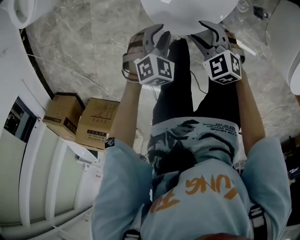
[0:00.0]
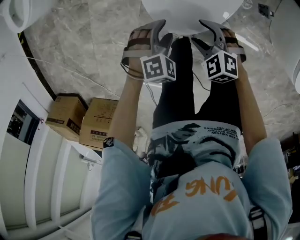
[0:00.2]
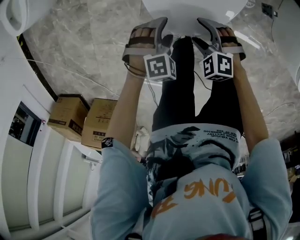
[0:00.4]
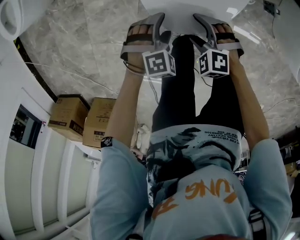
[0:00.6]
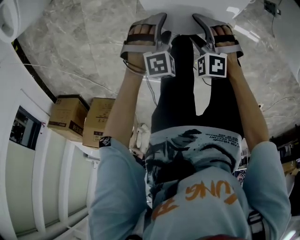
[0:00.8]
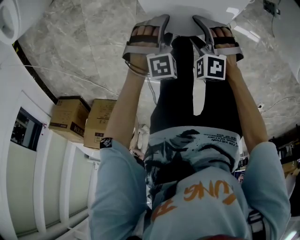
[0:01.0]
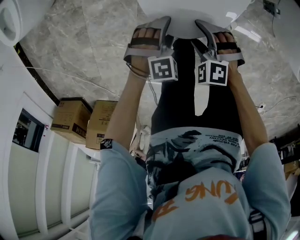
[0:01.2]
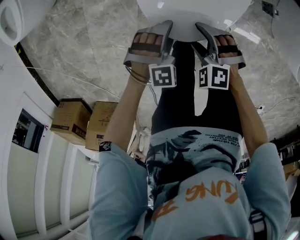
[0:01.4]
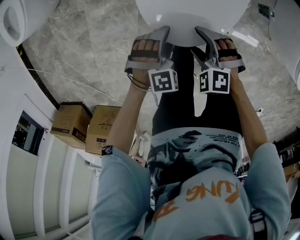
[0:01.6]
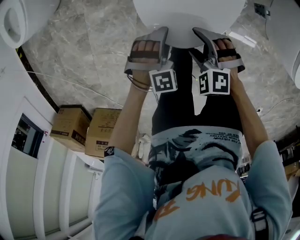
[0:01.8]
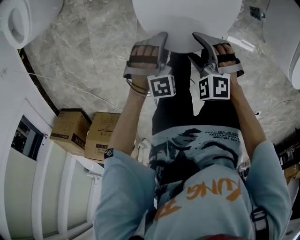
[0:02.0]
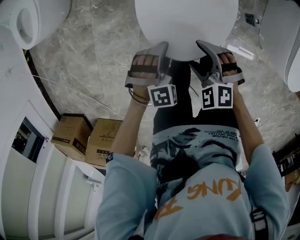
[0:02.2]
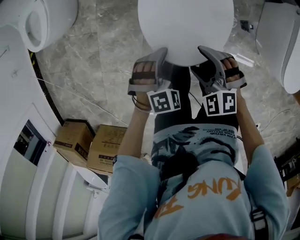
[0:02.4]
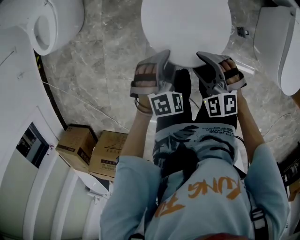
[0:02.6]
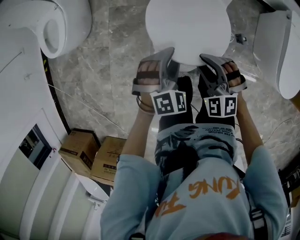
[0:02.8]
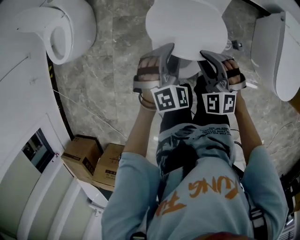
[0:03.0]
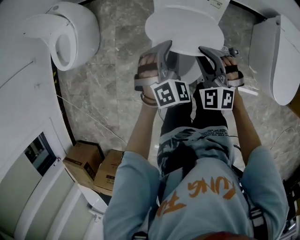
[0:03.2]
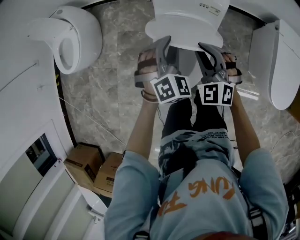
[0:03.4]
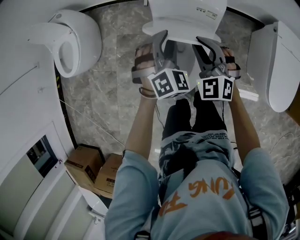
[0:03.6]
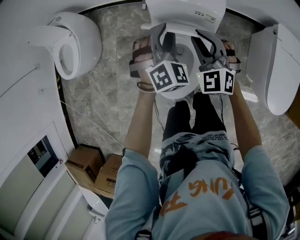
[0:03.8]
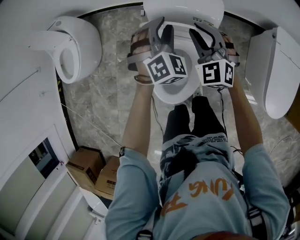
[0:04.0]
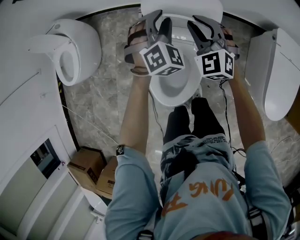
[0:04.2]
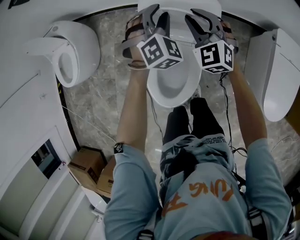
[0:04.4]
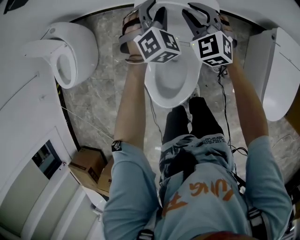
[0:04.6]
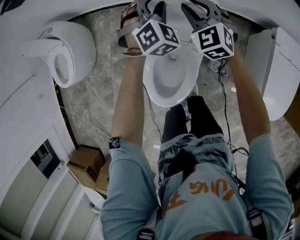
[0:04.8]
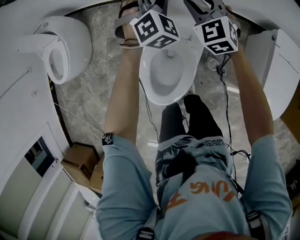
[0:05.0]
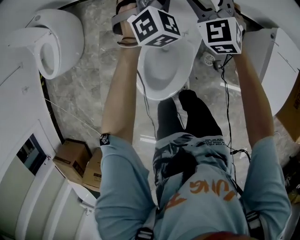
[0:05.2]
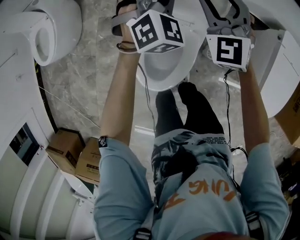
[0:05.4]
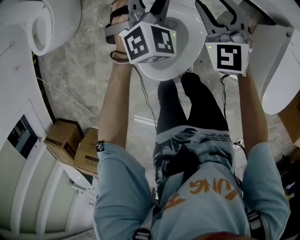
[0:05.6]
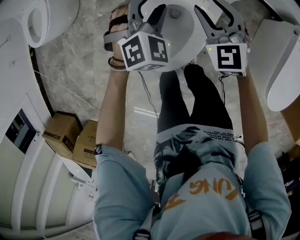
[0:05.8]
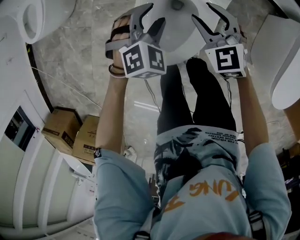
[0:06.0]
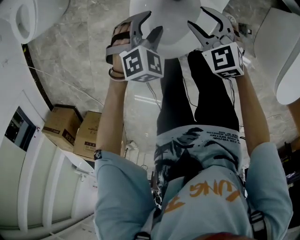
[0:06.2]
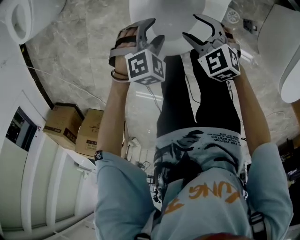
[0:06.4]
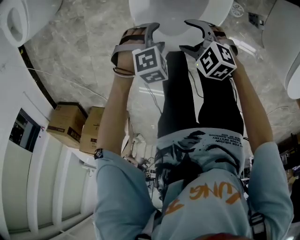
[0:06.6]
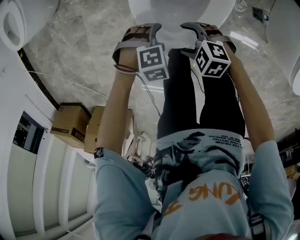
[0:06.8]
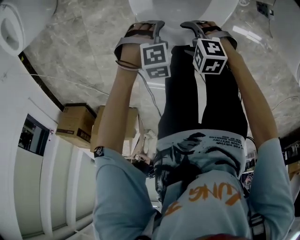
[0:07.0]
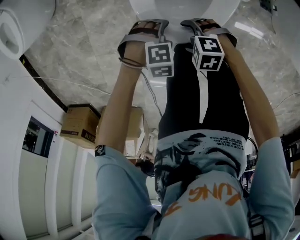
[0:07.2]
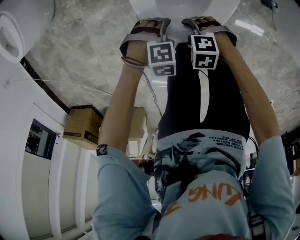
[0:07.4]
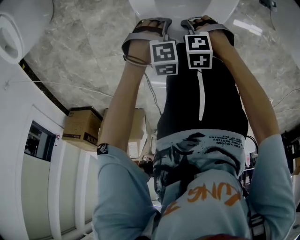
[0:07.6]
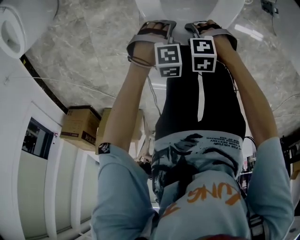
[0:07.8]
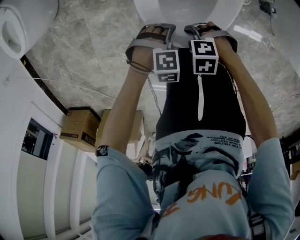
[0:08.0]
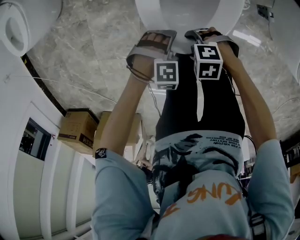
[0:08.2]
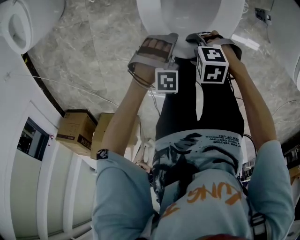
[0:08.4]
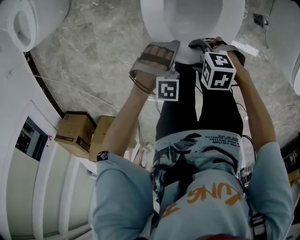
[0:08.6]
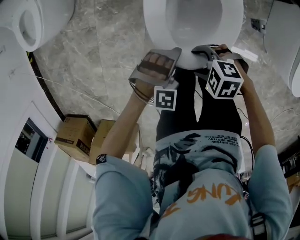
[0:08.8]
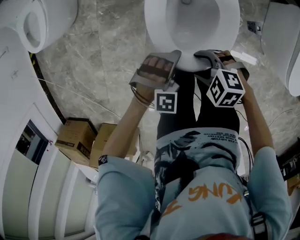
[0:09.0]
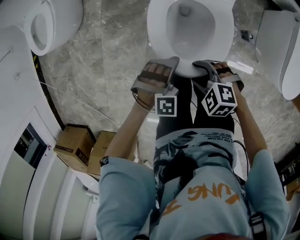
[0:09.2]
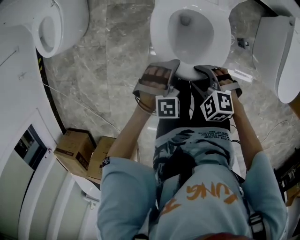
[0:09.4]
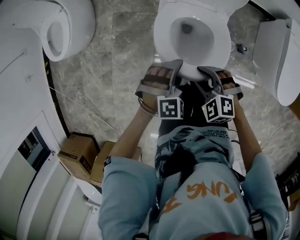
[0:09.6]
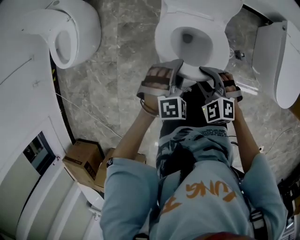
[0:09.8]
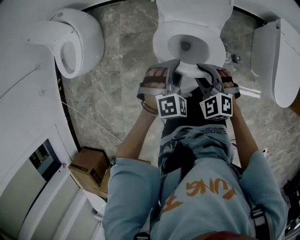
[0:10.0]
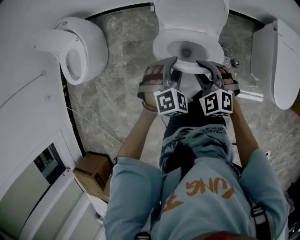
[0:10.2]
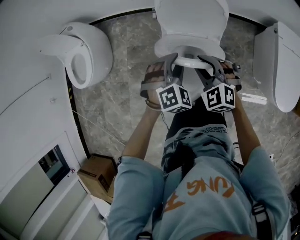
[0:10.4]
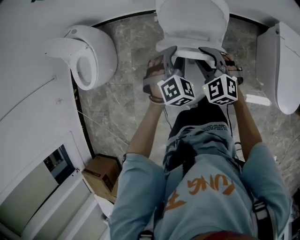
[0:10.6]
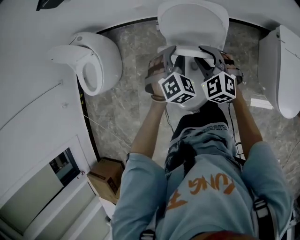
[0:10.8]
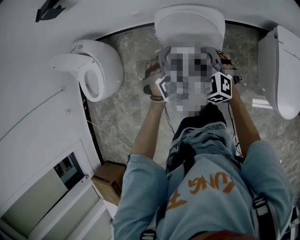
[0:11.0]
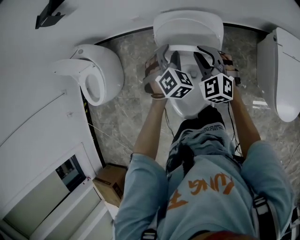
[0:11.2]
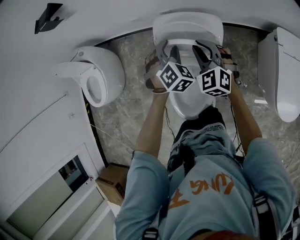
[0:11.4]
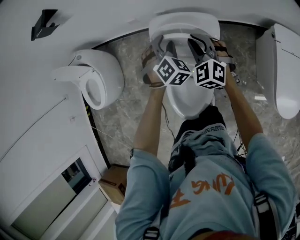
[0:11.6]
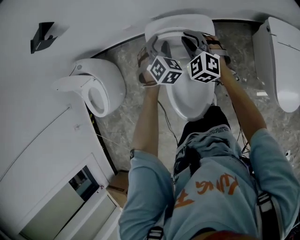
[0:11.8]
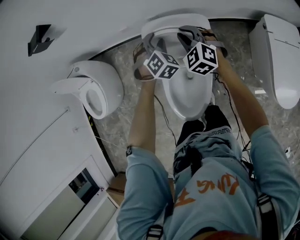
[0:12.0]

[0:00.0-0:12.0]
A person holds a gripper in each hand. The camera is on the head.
0:00.0 to 0:01.6: The grippers both shift downward by approximately 5 cm. The left gripper changes its angle by roughly 30 degrees, and opens its fingers; the right gripper rotates approximately 20 degrees, and opens its fingers.
0:01.6 to 0:03.0: The grippers both shift upward and forward by about 30 cm. The left gripper turns by some 30 degrees, and closes up; the right gripper changes its angle by roughly 30 degrees, and closes its fingers.
0:03.0 to 0:04.4: The grippers both shift forward and to the right by about 35 cm.
0:04.4 to 0:06.0: The right gripper is displaced downward, backward and to the left by approximately 30 cm, and turns by roughly 20 degrees. The left gripper is displaced backward, downward and to the left by approximately 35 cm.
0:06.0 to 0:07.6: The right gripper shifts by roughly 40 cm, and tilts its fingers some 30 degrees downward, while the left gripper moves roughly 35 cm, and rotates roughly 50 degrees.
0:07.6 to 0:09.0: Both grippers move upward, about 20 cm. The left gripper swivels about 30 degrees.
0:09.0 to 0:10.4: Both grippers move upward, roughly 25 cm. The left gripper rotates approximately 30 degrees. Meanwhile the right gripper turns by about 50 degrees, and closes up.
0:10.4 to 0:12.0: Both grippers move forward and to the right, approximately 25 cm.

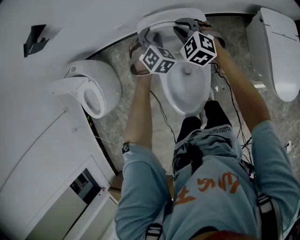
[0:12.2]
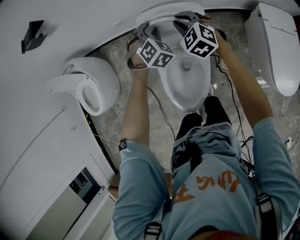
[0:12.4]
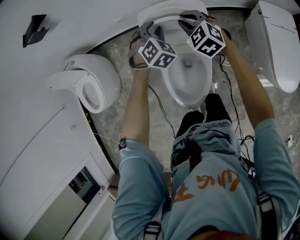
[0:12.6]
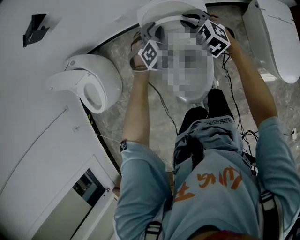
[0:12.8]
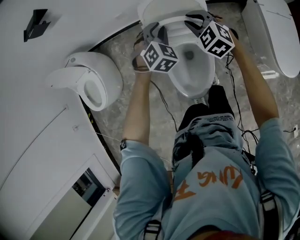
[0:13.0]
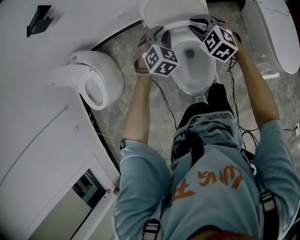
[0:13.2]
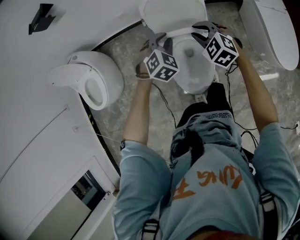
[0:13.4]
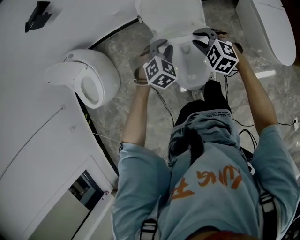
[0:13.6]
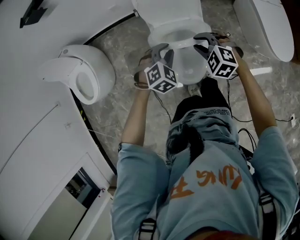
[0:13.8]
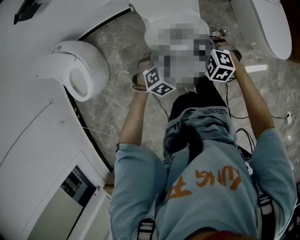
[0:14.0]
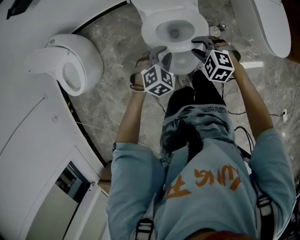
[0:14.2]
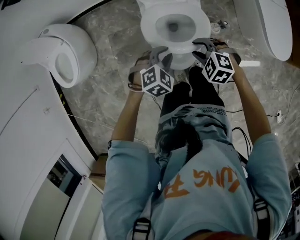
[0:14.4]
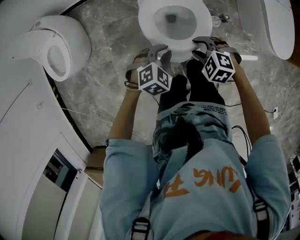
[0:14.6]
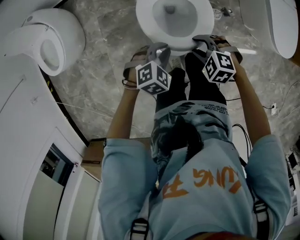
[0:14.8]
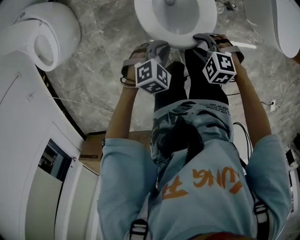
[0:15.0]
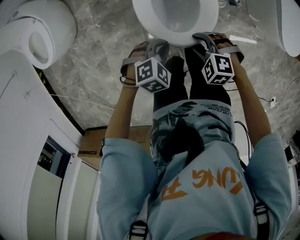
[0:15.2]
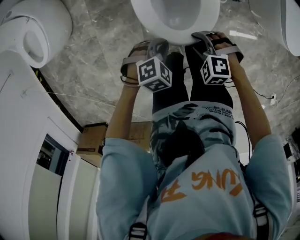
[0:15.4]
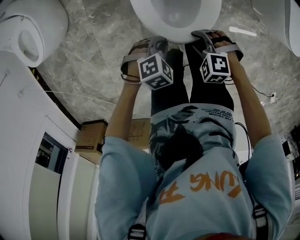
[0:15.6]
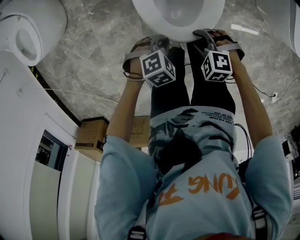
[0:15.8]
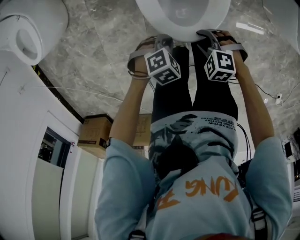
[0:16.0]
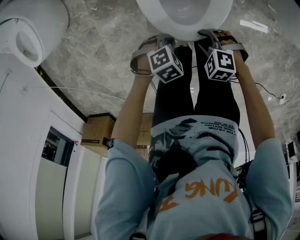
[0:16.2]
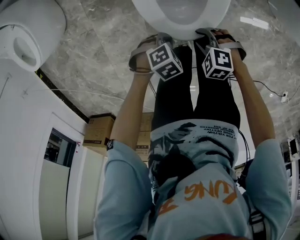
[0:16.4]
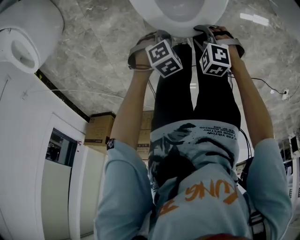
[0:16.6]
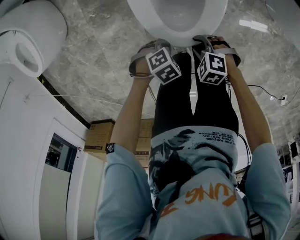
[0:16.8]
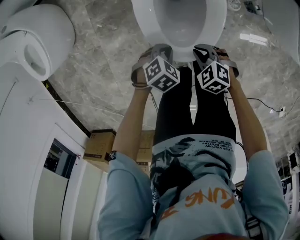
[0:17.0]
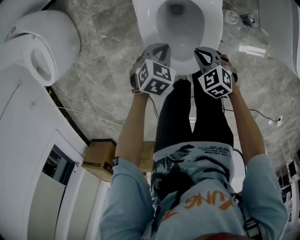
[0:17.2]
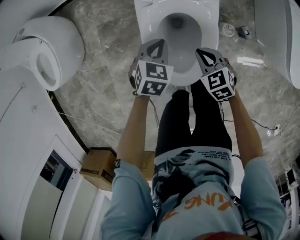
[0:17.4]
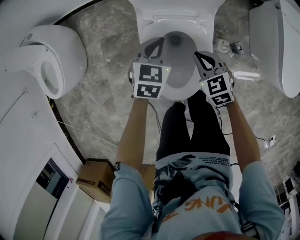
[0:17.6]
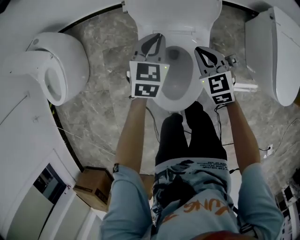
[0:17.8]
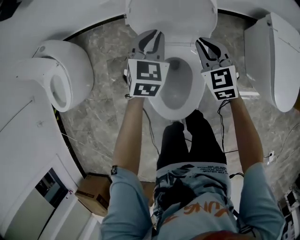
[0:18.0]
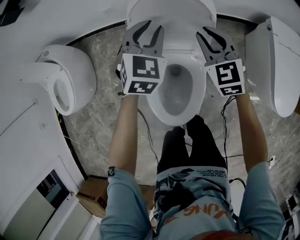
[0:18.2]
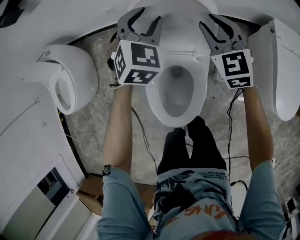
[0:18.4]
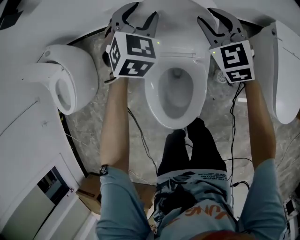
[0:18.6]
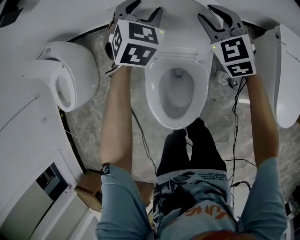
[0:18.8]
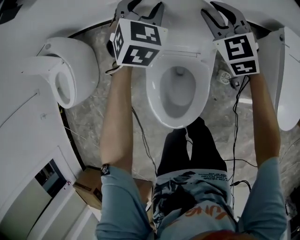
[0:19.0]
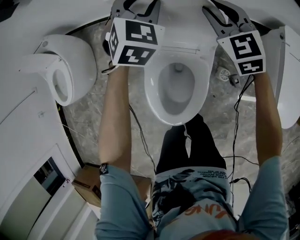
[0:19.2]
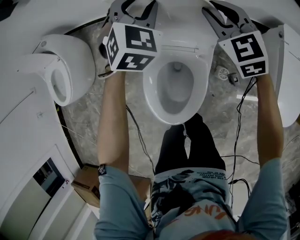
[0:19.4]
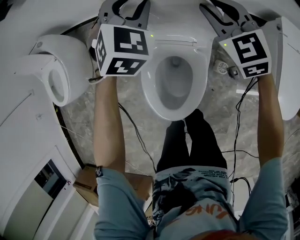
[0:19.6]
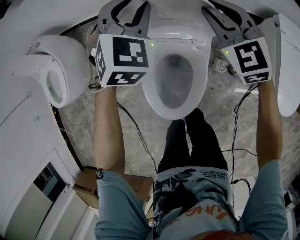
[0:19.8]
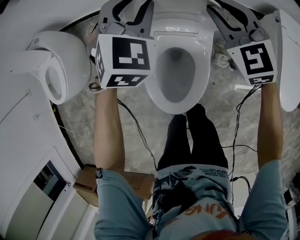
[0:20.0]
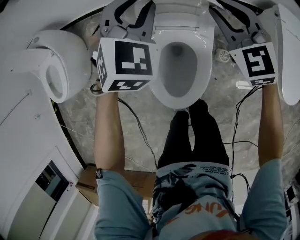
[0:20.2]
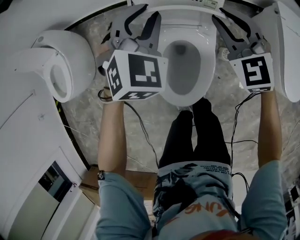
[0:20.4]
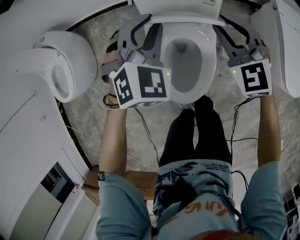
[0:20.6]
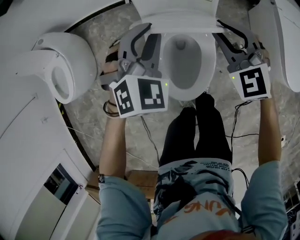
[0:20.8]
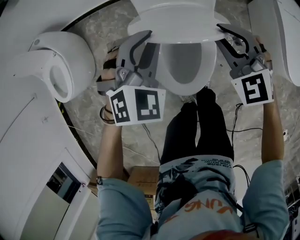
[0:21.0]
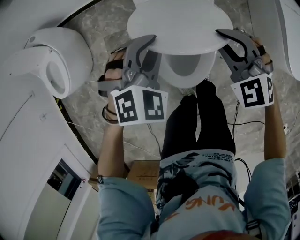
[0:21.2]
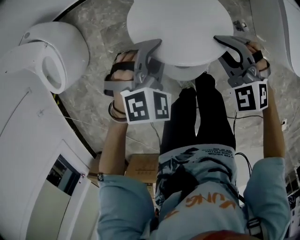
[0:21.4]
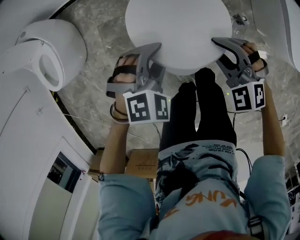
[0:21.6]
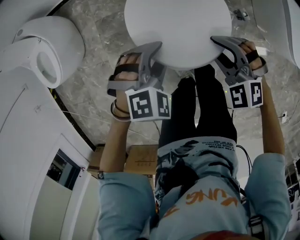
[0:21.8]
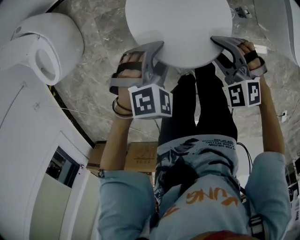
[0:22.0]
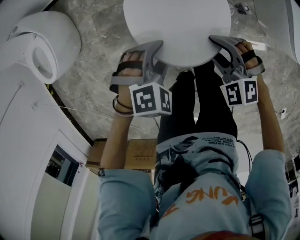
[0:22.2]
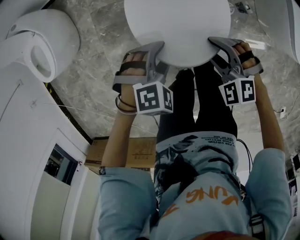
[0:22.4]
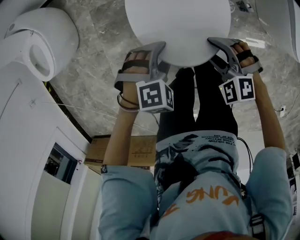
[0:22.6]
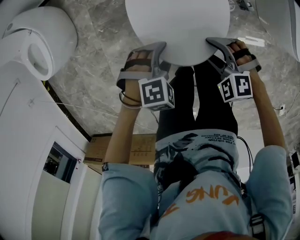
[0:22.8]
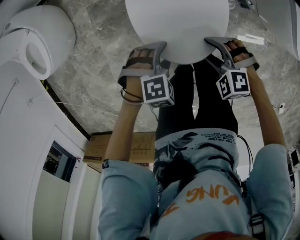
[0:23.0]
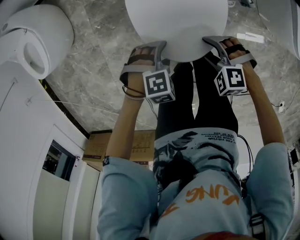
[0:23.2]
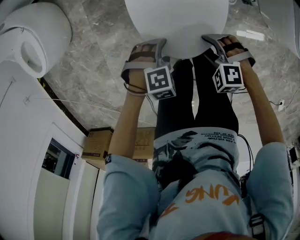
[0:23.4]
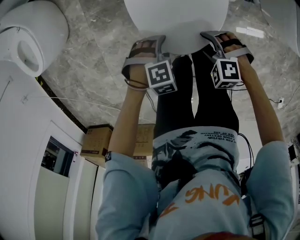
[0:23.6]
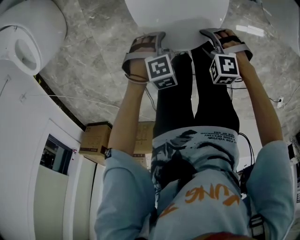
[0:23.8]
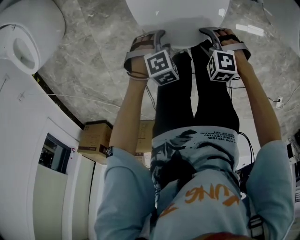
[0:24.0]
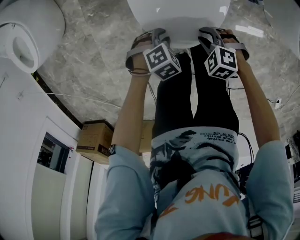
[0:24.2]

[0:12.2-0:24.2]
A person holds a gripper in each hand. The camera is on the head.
0:12.2 to 0:13.8: The grippers both shift backward by approximately 30 cm. The left gripper changes its angle by about 30 degrees.
0:13.8 to 0:15.2: Both grippers travel together downward, some 20 cm. The left gripper rotates some 20 degrees. Meanwhile the right gripper turns by approximately 20 degrees.
0:15.2 to 0:16.6: The two grippers go roughly 20 cm downward. The left gripper changes its angle by roughly 20 degrees.
0:16.6 to 0:18.2: The two grippers travel together, roughly 50 cm. The left gripper tilts its fingers some 40 degrees upward, while the right gripper points its fingers approximately 40 degrees further upward.
0:18.2 to 0:19.8: The left gripper travels forward and back again, some 10 cm each way. Meanwhile the right gripper reaches some 10 cm forward, then returns.
0:19.8 to 0:21.2: Both grippers travel together backward, about 20 cm. The left gripper turns by roughly 30 degrees.
0:21.2 to 0:22.6: Both grippers travel together backward and downward, roughly 20 cm. The right gripper changes its angle by about 20 degrees, and opens its fingers; the left gripper swivels approximately 20 degrees, and opens up.
0:22.6 to 0:24.2: The grippers both shift downward by some 15 cm. The left gripper swivels approximately 20 degrees, and closes. The right gripper swivels approximately 20 degrees.
